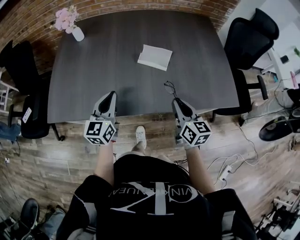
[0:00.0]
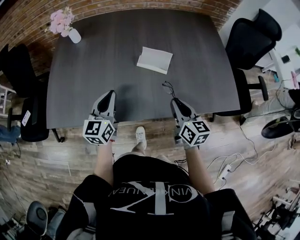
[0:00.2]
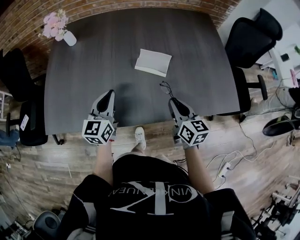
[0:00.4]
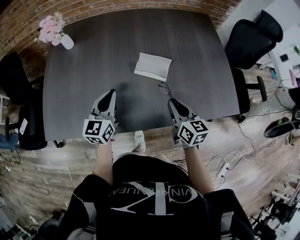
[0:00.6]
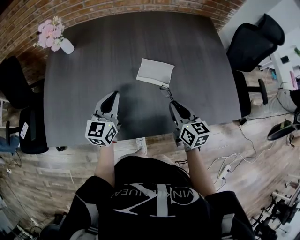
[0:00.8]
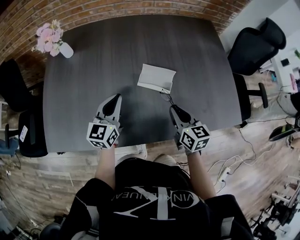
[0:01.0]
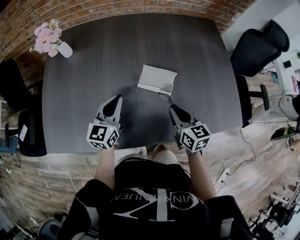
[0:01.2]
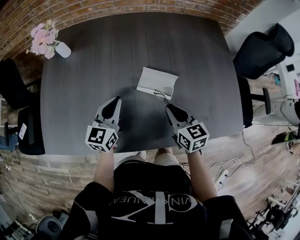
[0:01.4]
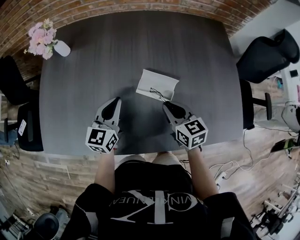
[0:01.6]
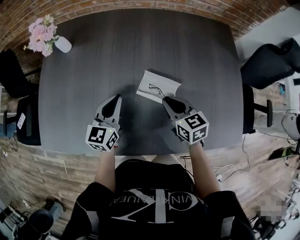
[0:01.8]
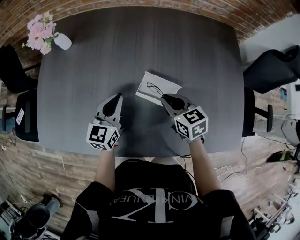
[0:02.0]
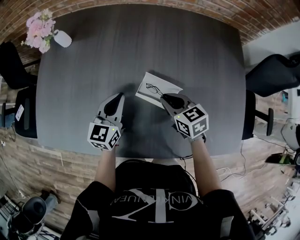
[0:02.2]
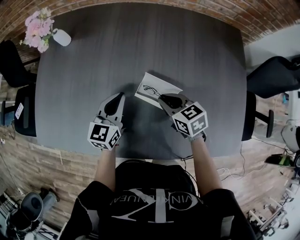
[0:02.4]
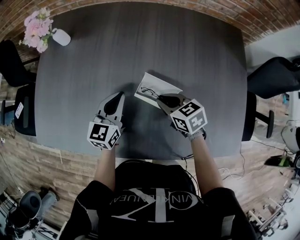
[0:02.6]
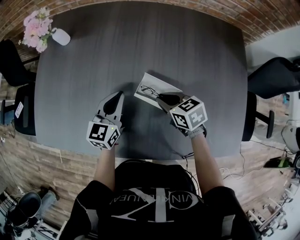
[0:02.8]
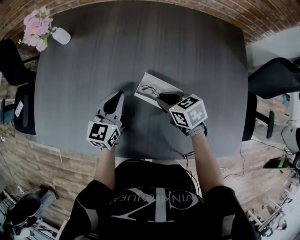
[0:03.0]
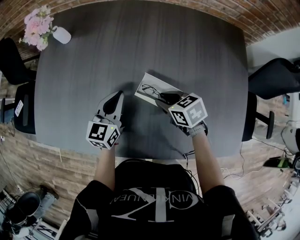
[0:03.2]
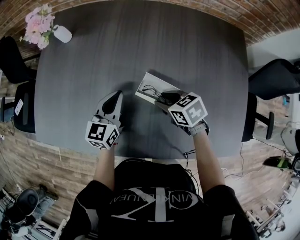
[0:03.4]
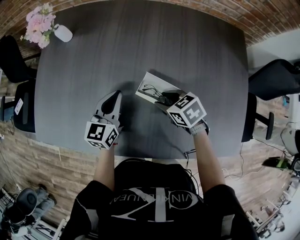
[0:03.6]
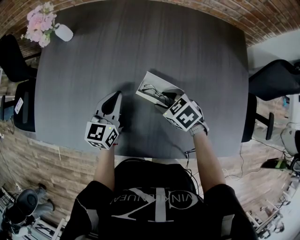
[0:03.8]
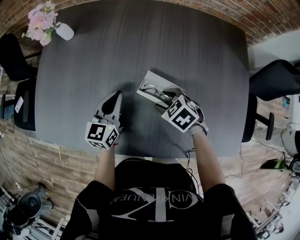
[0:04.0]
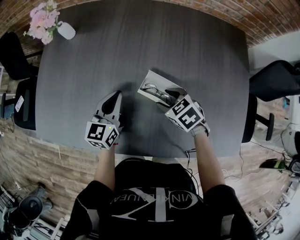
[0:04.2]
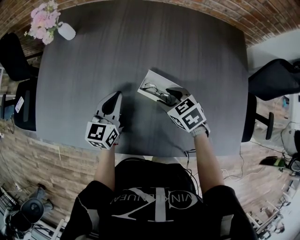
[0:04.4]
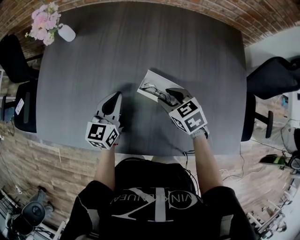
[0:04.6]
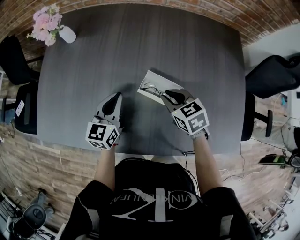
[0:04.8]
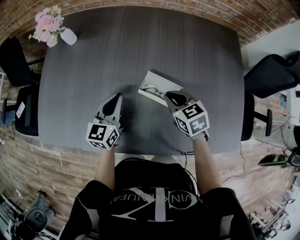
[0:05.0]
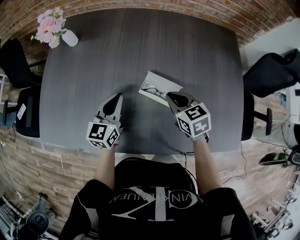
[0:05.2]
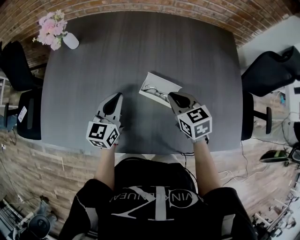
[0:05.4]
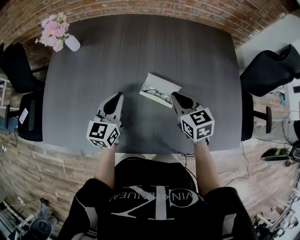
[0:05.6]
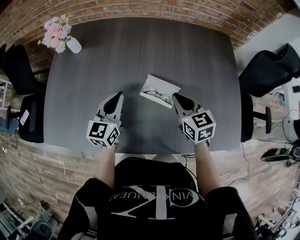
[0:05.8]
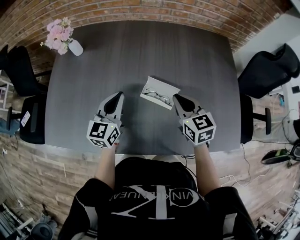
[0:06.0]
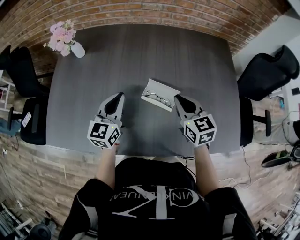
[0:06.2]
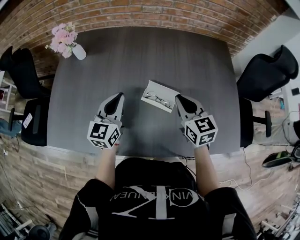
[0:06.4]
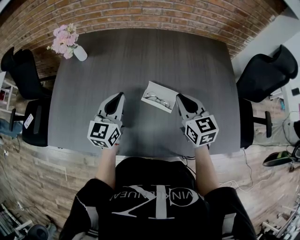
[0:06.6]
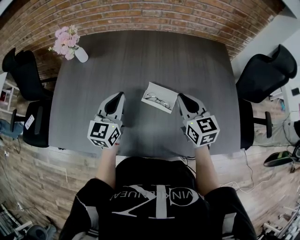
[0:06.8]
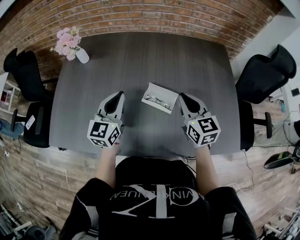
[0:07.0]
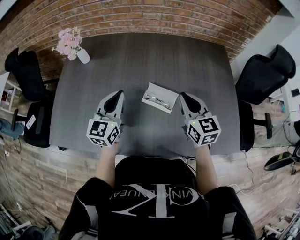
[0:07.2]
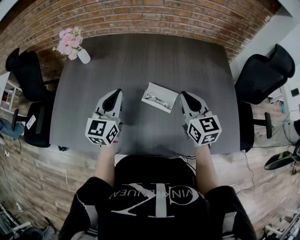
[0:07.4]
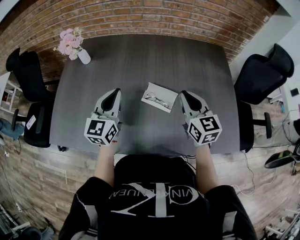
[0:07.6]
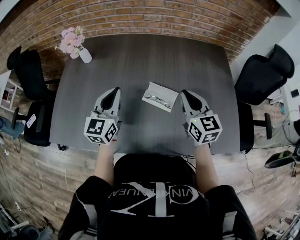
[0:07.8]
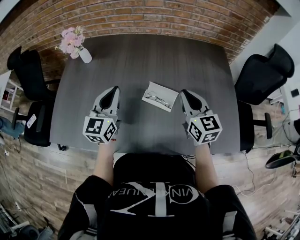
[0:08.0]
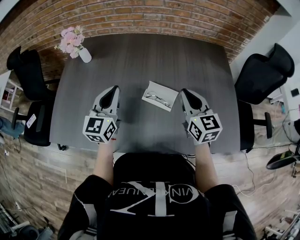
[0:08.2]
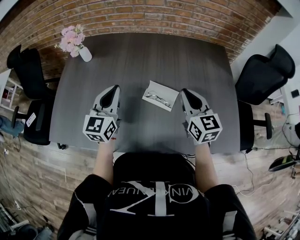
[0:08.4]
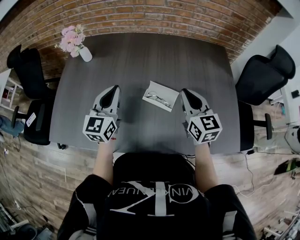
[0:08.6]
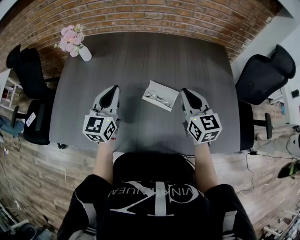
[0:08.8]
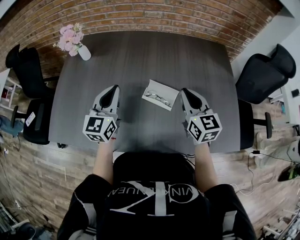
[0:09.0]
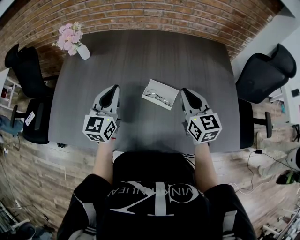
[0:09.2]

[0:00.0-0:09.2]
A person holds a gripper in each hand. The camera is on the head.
0:00.0 to 0:01.6: The grippers both shift forward by approximately 20 cm. The right gripper rotates about 20 degrees.
0:01.6 to 0:03.0: The right gripper goes roughly 10 cm forward and downward, and changes its angle by roughly 30 degrees. Meanwhile the left gripper changes place by approximately 5 cm.
0:03.0 to 0:04.6: The right gripper opens its fingers.
0:04.6 to 0:06.2: Both grippers travel together upward, approximately 10 cm. The right gripper rotates roughly 30 degrees, and closes.
0:06.2 to 0:07.6: The two grippers go some 5 cm upward.
0:07.6 to 0:09.2: There are only small adjustments of the grippers.

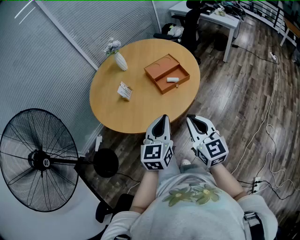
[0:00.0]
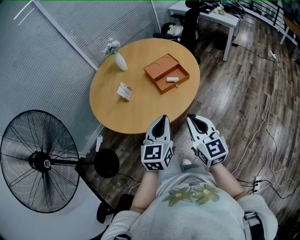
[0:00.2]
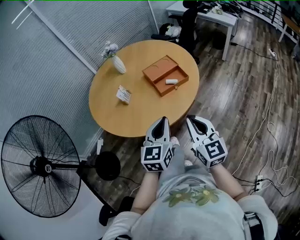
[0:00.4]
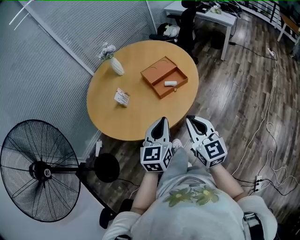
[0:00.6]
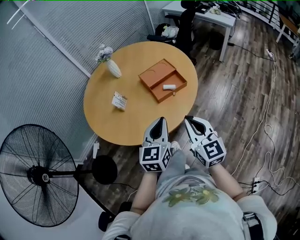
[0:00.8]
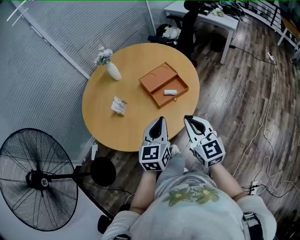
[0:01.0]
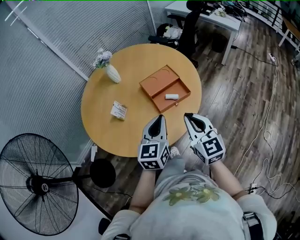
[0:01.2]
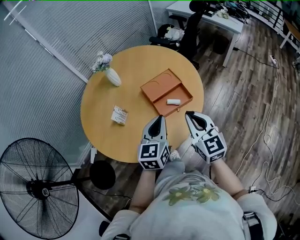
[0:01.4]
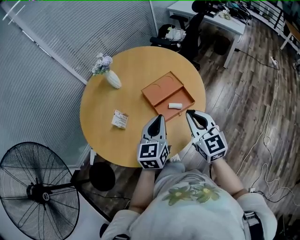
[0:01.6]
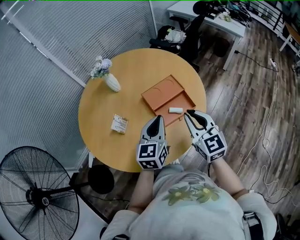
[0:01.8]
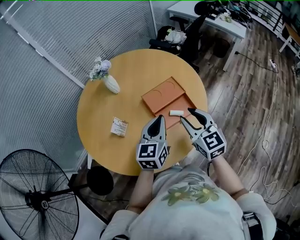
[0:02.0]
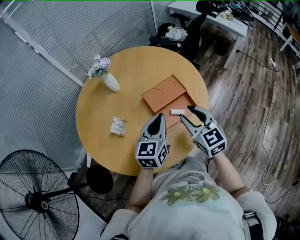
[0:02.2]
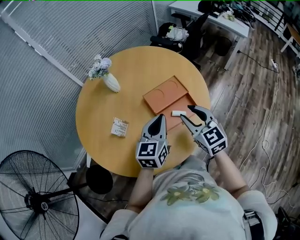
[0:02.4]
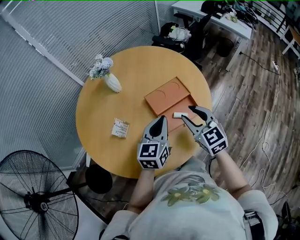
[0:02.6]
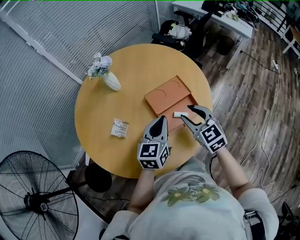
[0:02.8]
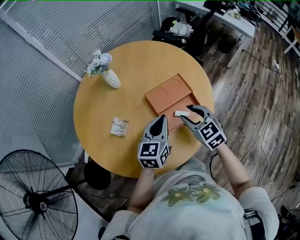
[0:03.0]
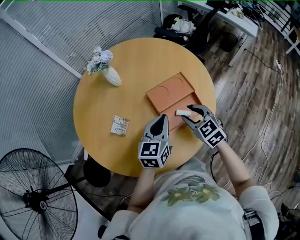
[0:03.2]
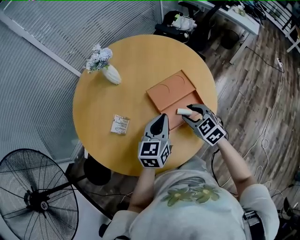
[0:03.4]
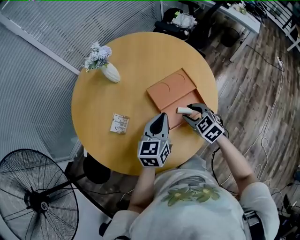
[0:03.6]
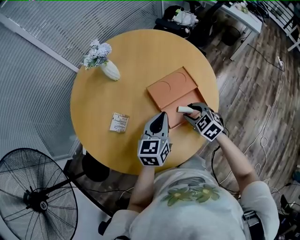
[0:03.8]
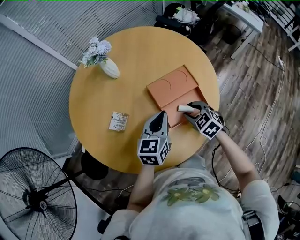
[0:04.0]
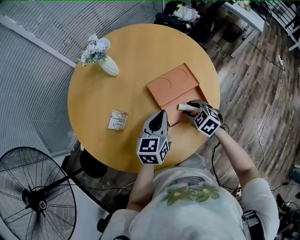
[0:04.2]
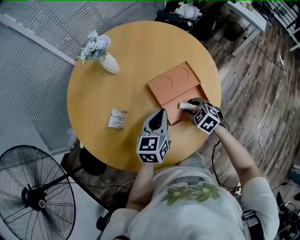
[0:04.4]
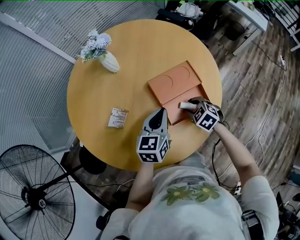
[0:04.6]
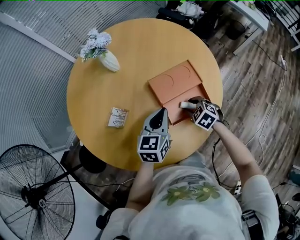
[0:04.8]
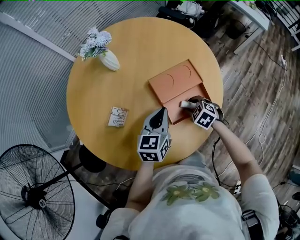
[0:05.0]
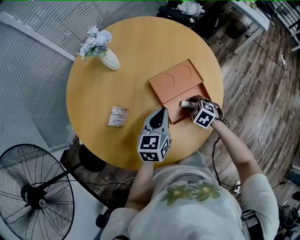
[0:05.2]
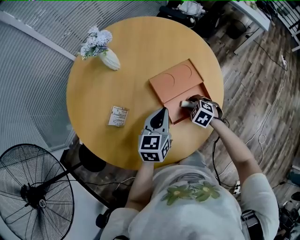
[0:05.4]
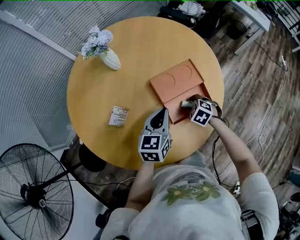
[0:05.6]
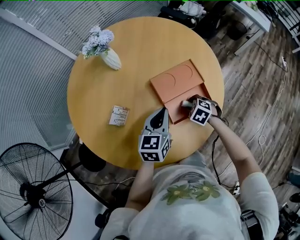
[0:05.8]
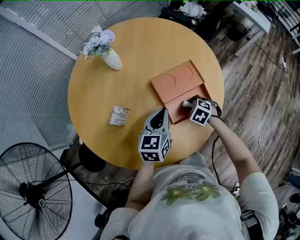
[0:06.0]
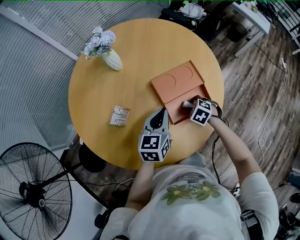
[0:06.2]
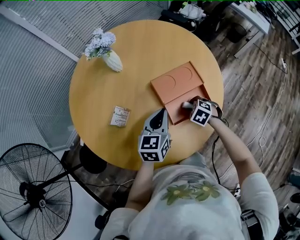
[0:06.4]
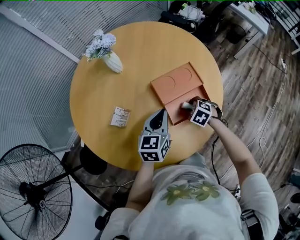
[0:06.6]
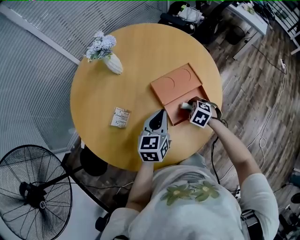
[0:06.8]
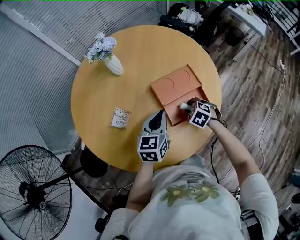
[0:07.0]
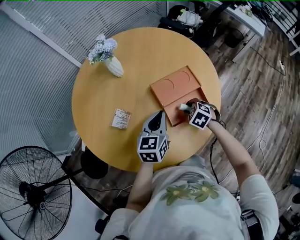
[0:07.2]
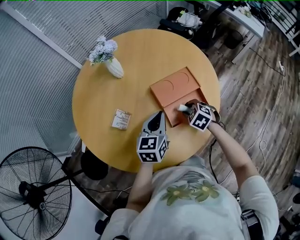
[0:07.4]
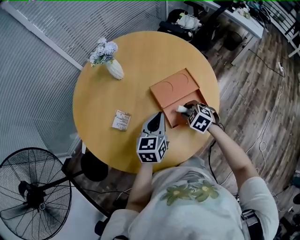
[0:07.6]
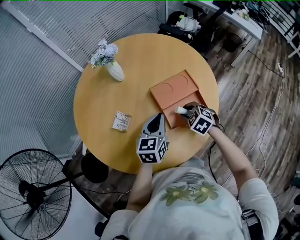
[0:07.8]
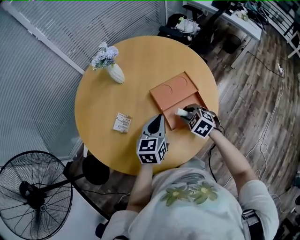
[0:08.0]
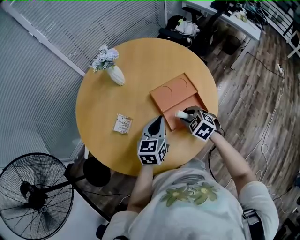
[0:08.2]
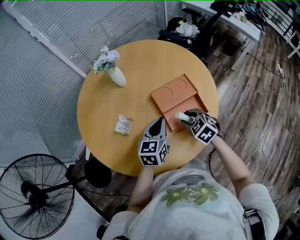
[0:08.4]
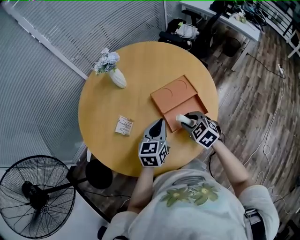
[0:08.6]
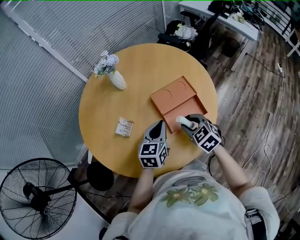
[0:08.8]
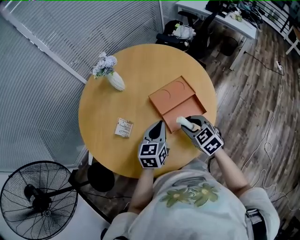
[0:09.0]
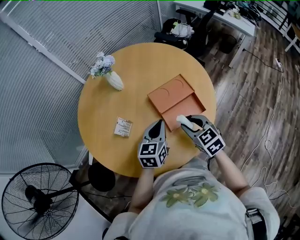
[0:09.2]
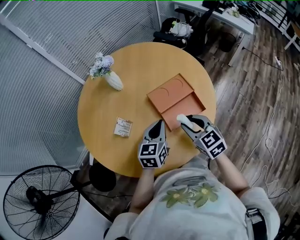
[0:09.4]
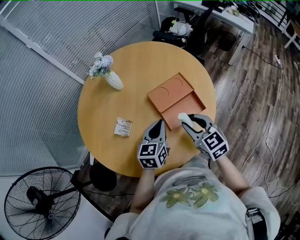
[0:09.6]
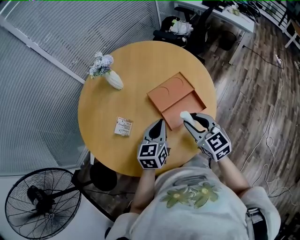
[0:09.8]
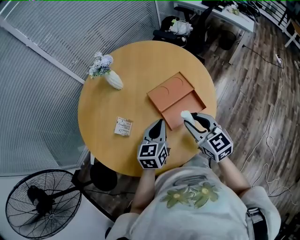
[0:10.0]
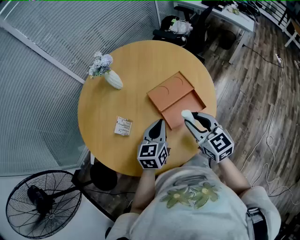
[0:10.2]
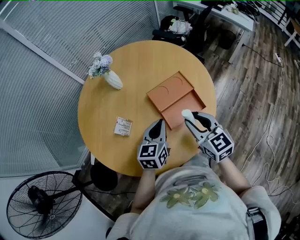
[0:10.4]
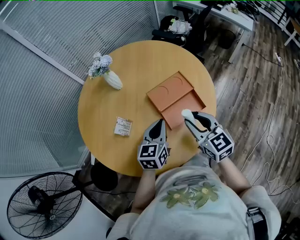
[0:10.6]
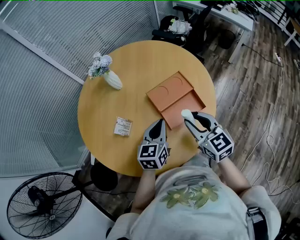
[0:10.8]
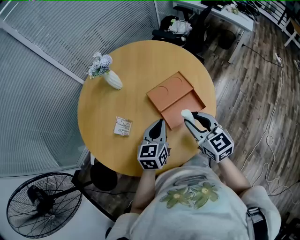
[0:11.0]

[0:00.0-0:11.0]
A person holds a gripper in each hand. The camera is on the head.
0:00.0 to 0:01.6: Both grippers travel together forward, roughly 30 cm.
0:01.6 to 0:03.2: The right gripper moves downward and forward, roughly 20 cm, turns by roughly 30 degrees, and opens; the left gripper is displaced forward and downward by about 15 cm.
0:03.2 to 0:04.8: The right gripper travels downward by roughly 15 cm, and swivels about 30 degrees, while the left gripper is displaced downward by roughly 5 cm.
0:04.8 to 0:06.2: The grippers make only small movements.
0:06.2 to 0:07.8: The right gripper moves upward, approximately 10 cm.
0:07.8 to 0:09.4: The right gripper moves upward and backward, some 15 cm, and changes its angle by roughly 40 degrees.
0:09.4 to 0:11.0: The right gripper changes place by some 5 cm.

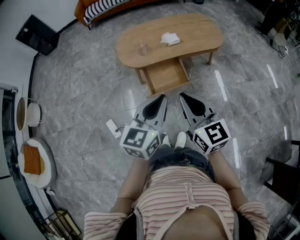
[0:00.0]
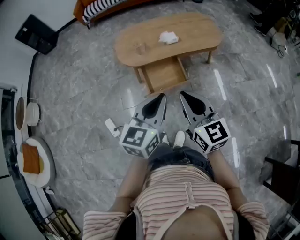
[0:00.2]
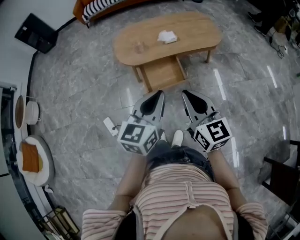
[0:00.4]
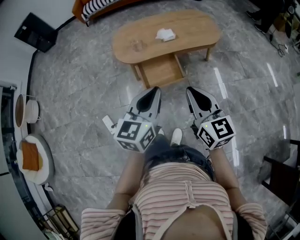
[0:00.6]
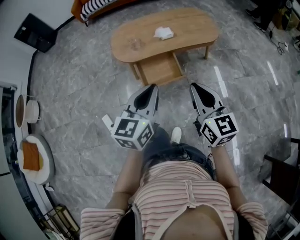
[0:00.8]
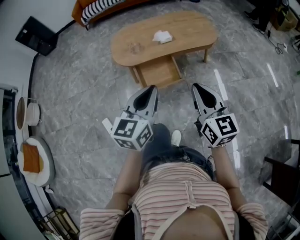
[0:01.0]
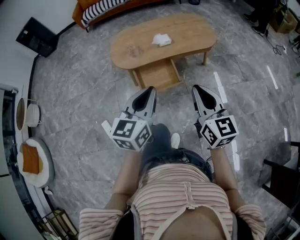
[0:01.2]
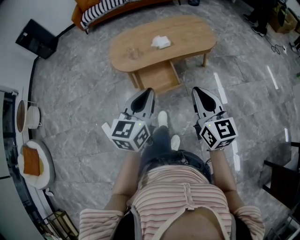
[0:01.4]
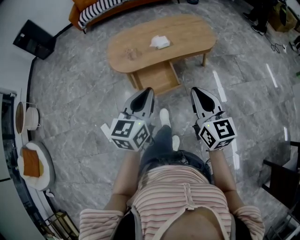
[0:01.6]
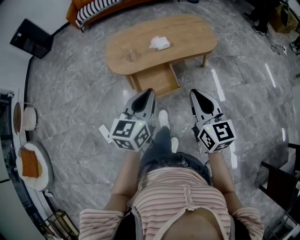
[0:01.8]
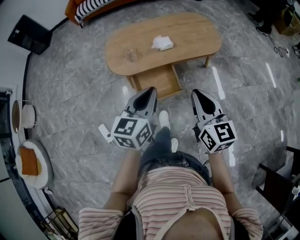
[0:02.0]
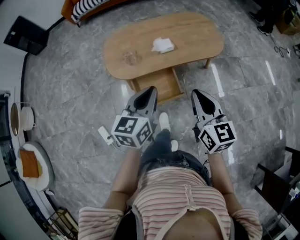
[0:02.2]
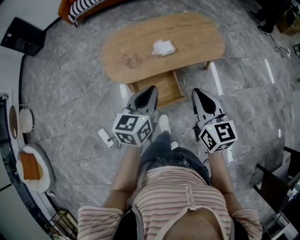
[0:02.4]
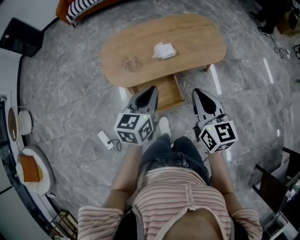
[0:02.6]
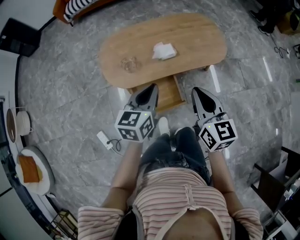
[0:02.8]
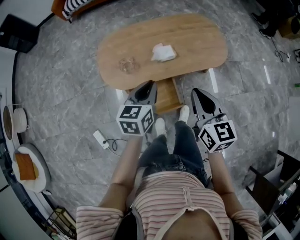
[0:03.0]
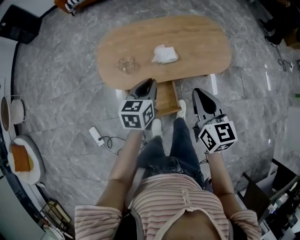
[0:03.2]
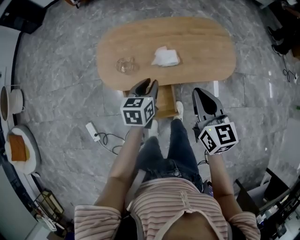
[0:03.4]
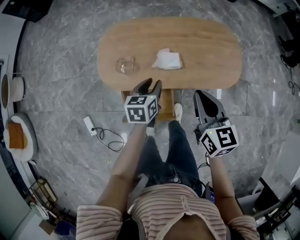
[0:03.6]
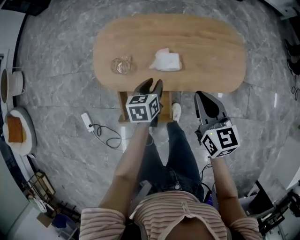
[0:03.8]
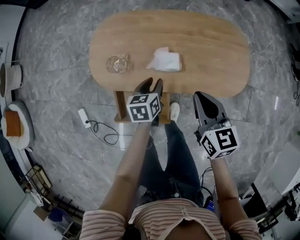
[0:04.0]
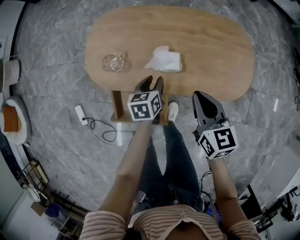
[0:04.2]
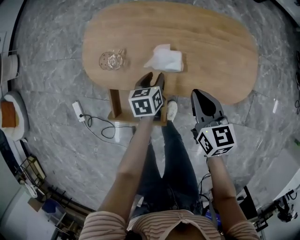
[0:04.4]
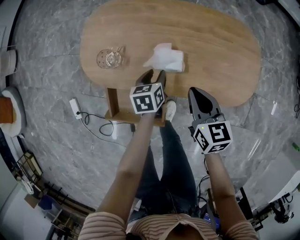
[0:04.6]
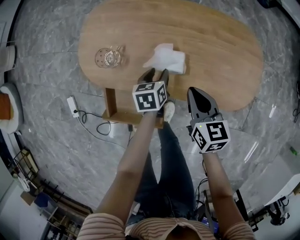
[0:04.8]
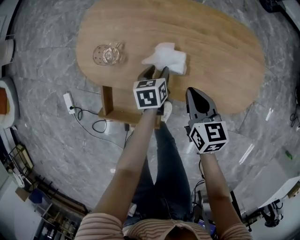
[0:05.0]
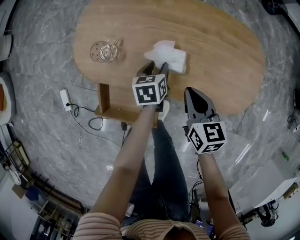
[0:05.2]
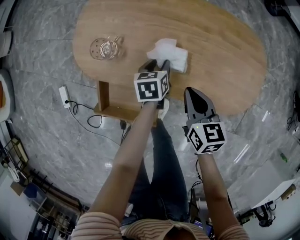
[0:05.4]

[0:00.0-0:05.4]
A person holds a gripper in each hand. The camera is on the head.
0:00.0 to 0:01.4: The right gripper is displaced to the right by approximately 15 cm, while the left gripper shifts by some 5 cm.
0:01.4 to 0:02.8: Both grippers travel together forward, about 25 cm.
0:02.8 to 0:04.0: The left gripper is displaced downward and forward by about 30 cm, changes its angle by about 40 degrees, and opens up, while the right gripper is displaced forward and downward by about 25 cm, and swivels about 30 degrees.
0:04.0 to 0:05.4: The right gripper shifts roughly 15 cm downward; the left gripper shifts approximately 15 cm downward and forward.
